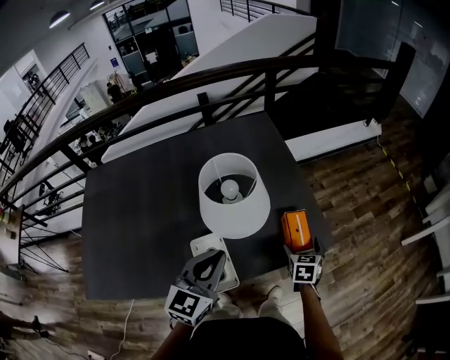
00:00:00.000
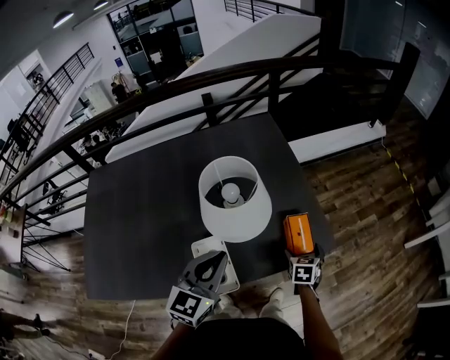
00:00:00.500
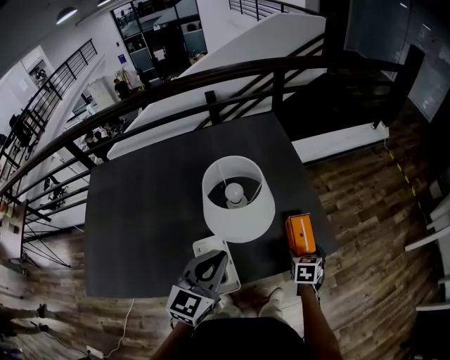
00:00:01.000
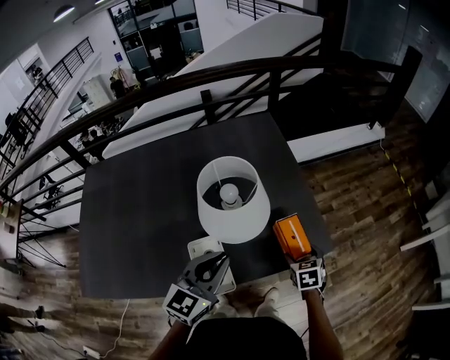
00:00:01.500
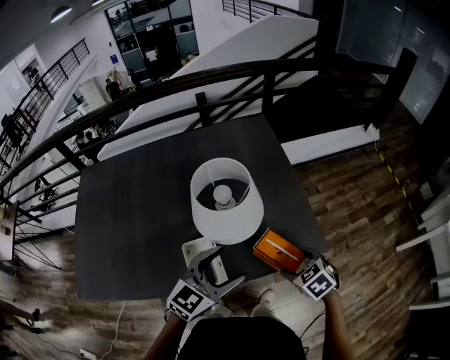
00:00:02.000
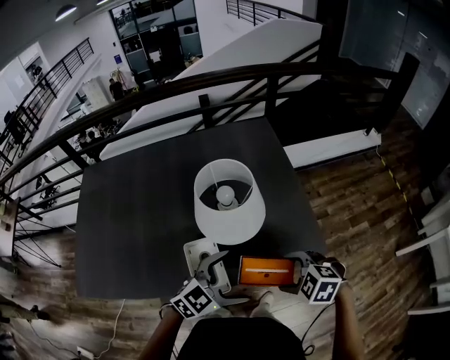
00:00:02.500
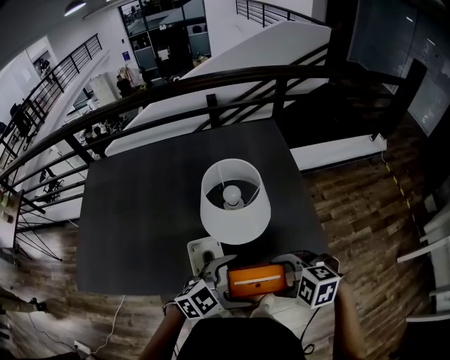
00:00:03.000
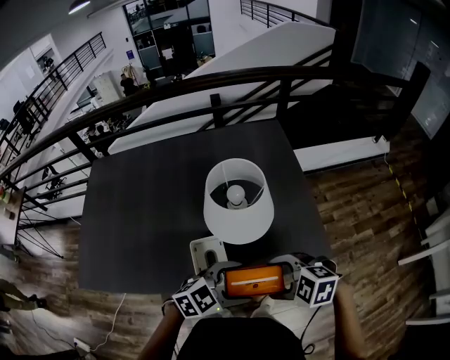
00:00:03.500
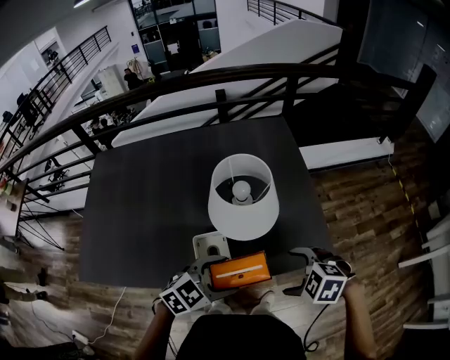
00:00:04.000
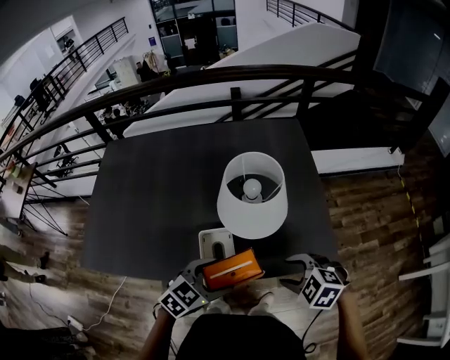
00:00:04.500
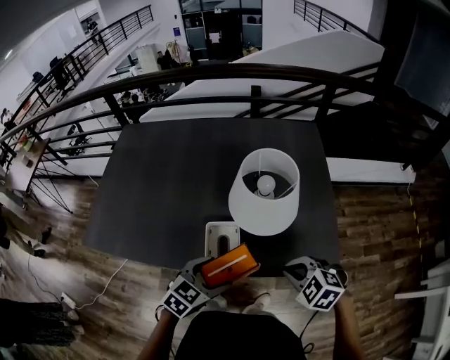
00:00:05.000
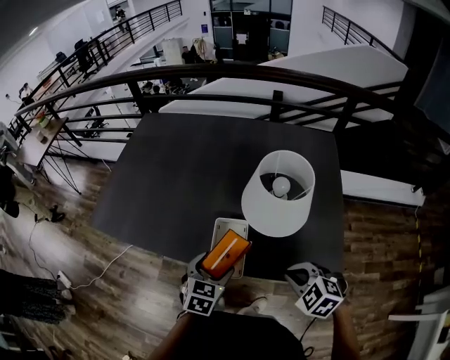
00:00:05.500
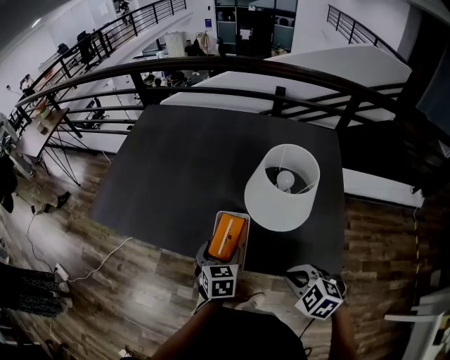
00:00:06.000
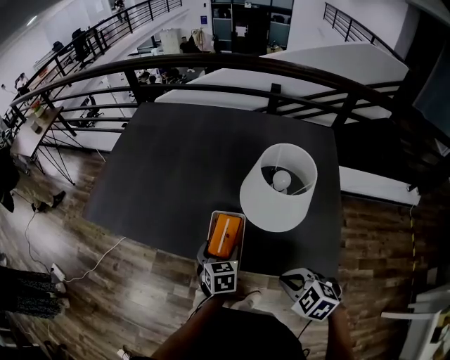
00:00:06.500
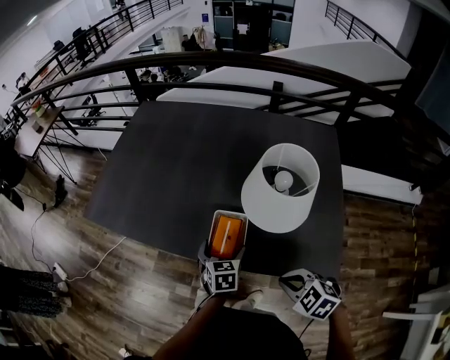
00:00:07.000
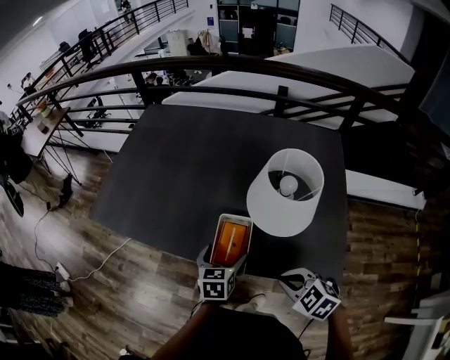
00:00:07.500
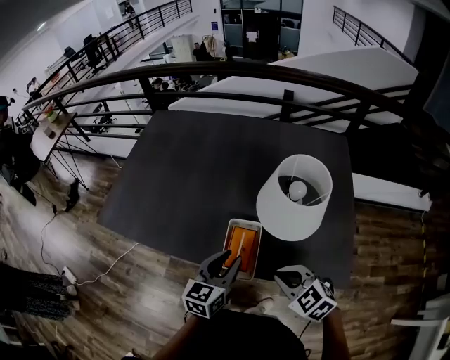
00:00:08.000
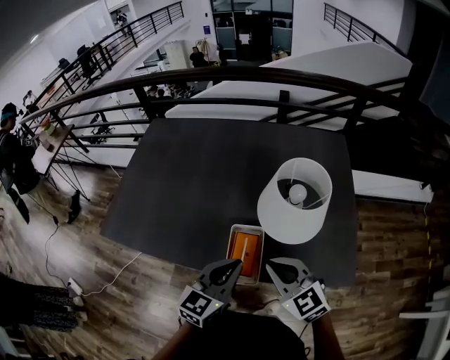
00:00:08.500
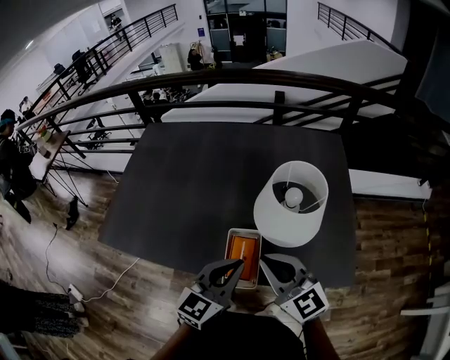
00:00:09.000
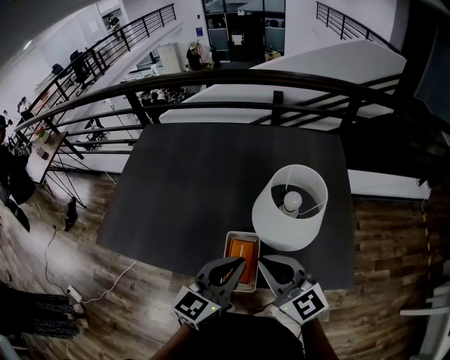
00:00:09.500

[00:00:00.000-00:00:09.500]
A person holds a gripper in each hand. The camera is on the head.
00:00:00.000 to 00:00:02.000: The left gripper shifts roughly 5 cm to the right, and opens up, while the right gripper is displaced backward by about 5 cm, and changes its angle by about 50 degrees.
00:00:02.000 to 00:00:04.000: The left gripper moves about 5 cm, rotates roughly 20 degrees, and opens, then closes again. Meanwhile the right gripper changes place by some 10 cm, and changes its angle by approximately 40 degrees.
00:00:04.000 to 00:00:05.500: The left gripper shifts by approximately 10 cm, and swivels about 60 degrees; the right gripper closes its fingers.
00:00:05.500 to 00:00:07.500: The left gripper swivels about 20 degrees.
00:00:07.500 to 00:00:09.500: The right gripper travels upward, forward and to the left by some 20 cm, and tilts its fingers approximately 50 degrees upward; the left gripper heads upward, covering about 20 cm, tips its fingers upward by about 30 degrees, and closes its fingers.

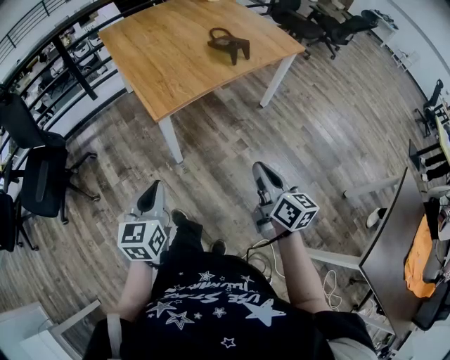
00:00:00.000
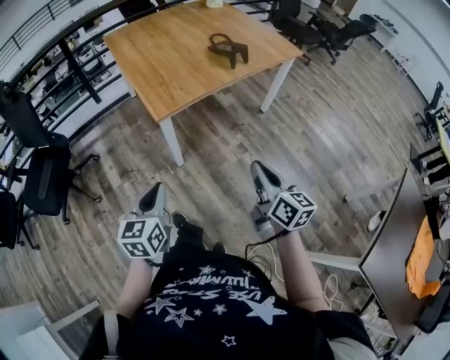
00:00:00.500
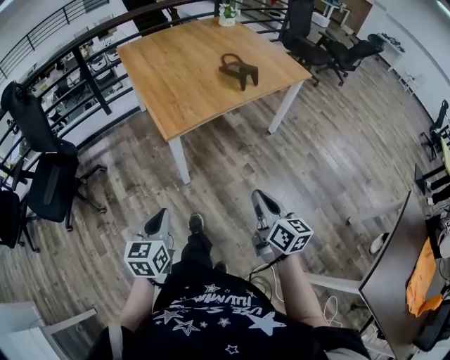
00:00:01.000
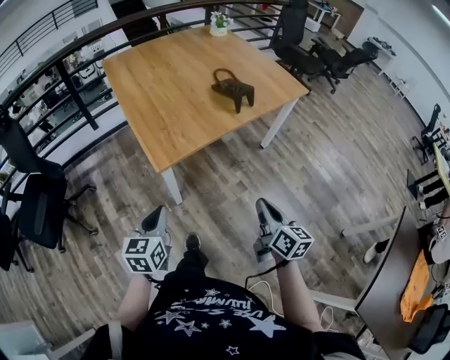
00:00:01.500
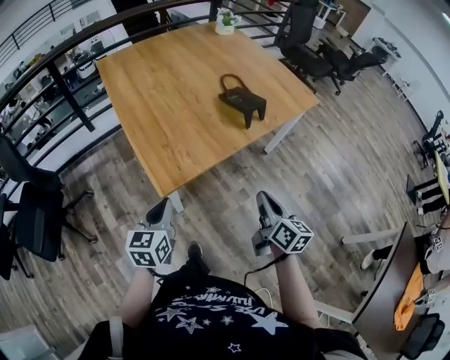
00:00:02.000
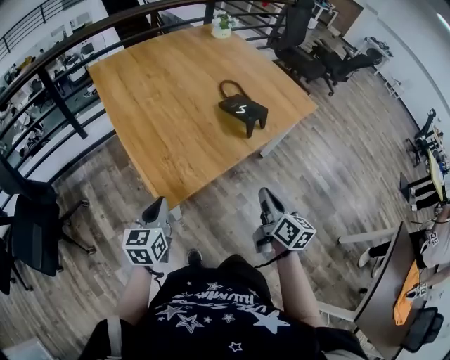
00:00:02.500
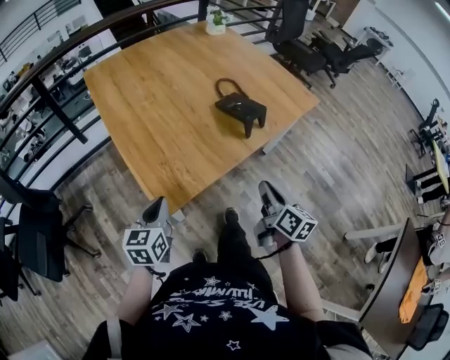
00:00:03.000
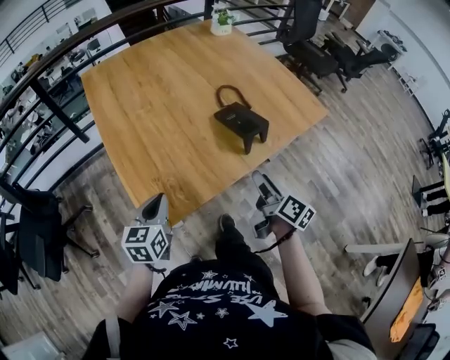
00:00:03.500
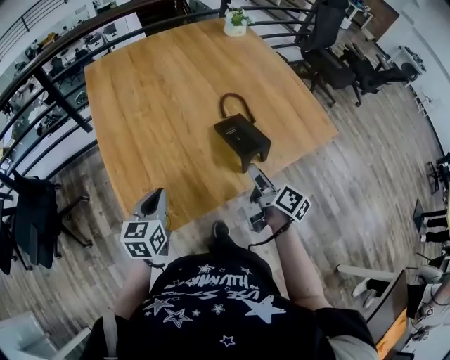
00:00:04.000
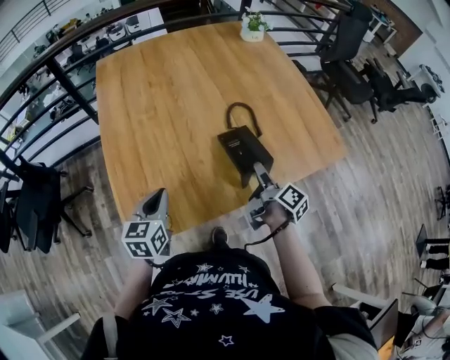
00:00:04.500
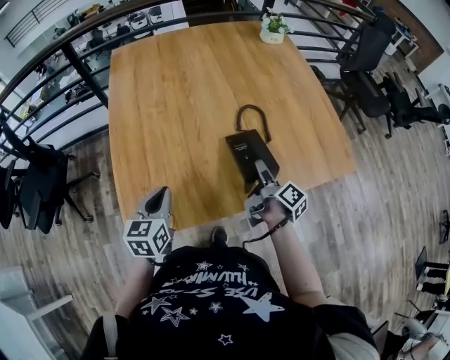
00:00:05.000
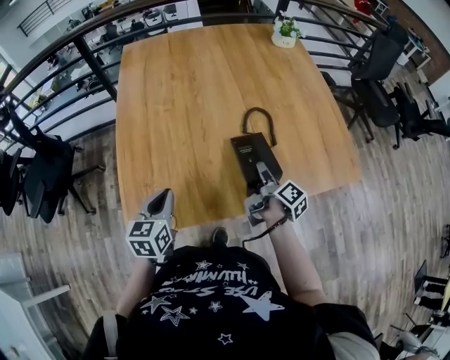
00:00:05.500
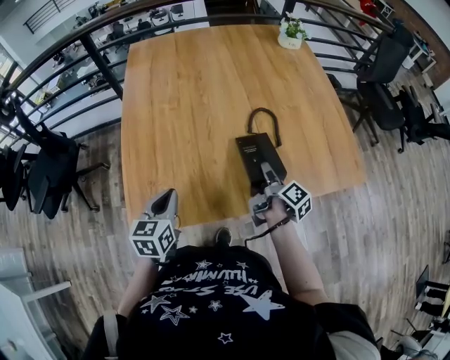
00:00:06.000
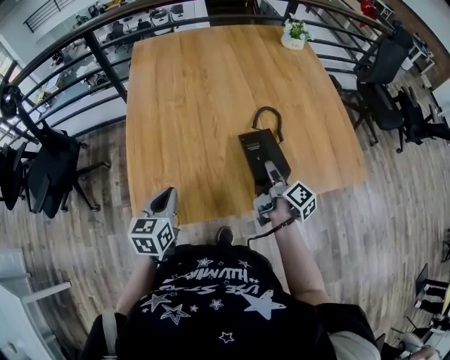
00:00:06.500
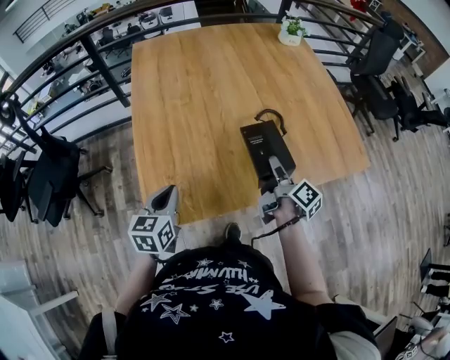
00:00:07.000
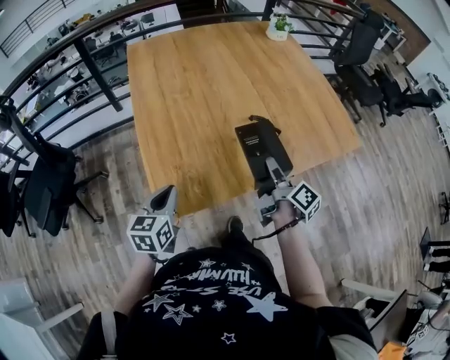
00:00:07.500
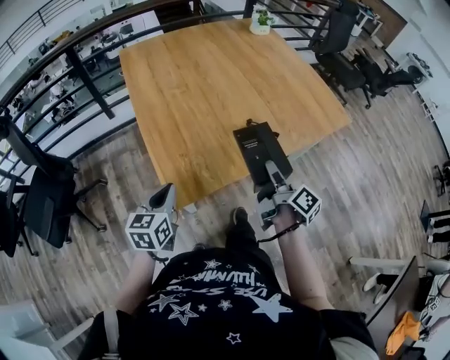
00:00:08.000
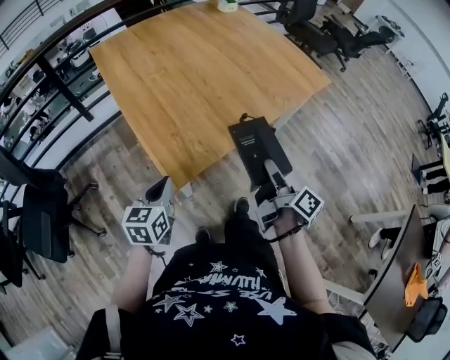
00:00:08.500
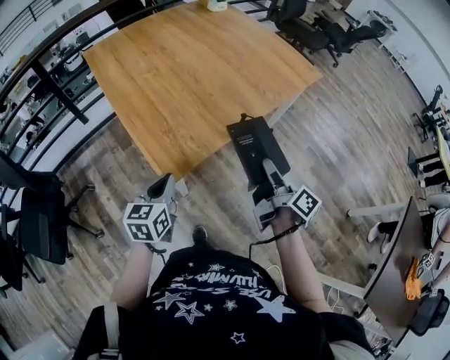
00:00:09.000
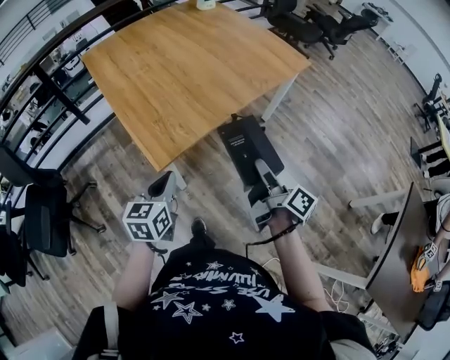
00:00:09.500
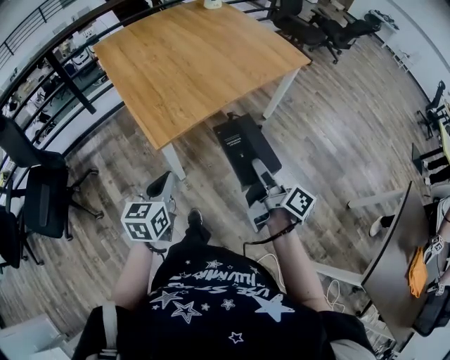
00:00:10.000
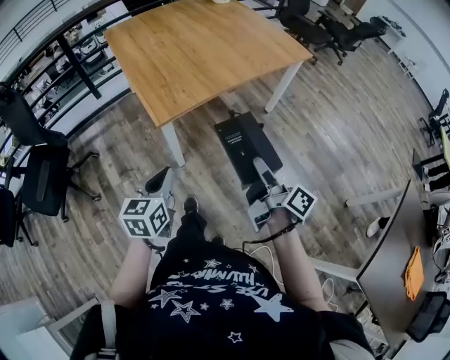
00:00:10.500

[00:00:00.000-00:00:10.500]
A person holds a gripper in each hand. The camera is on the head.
00:00:00.000 to 00:00:02.000: Both grippers move forward, roughly 25 cm.
00:00:02.000 to 00:00:04.000: The grippers both shift forward by some 25 cm. The right gripper rotates roughly 30 degrees, and opens its fingers.
00:00:04.000 to 00:00:06.500: The right gripper is displaced forward and downward by roughly 10 cm.
00:00:06.500 to 00:00:08.500: The right gripper moves backward, approximately 30 cm, and turns by some 20 degrees; the left gripper goes about 20 cm backward and to the left, and changes its angle by roughly 30 degrees.
00:00:08.500 to 00:00:10.500: The left gripper heads backward and to the right, covering some 25 cm. Meanwhile the right gripper is displaced backward by about 25 cm.

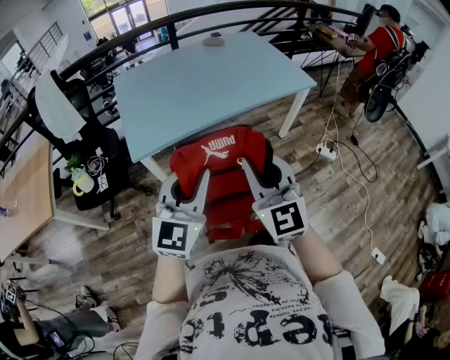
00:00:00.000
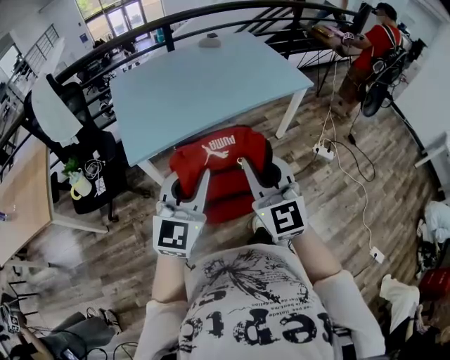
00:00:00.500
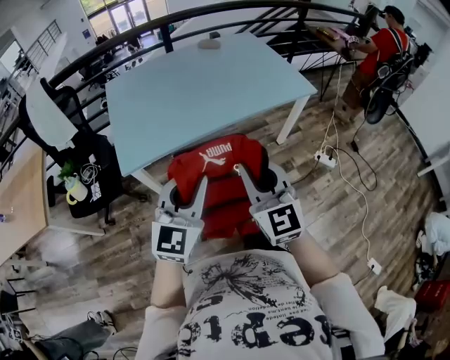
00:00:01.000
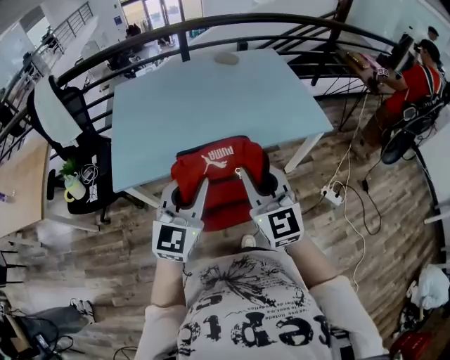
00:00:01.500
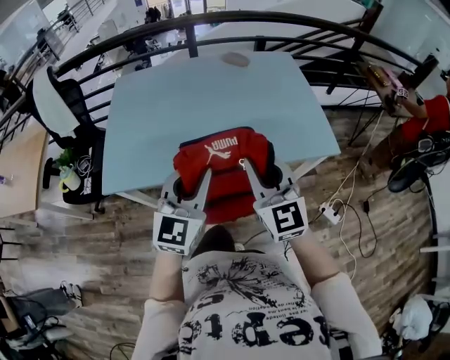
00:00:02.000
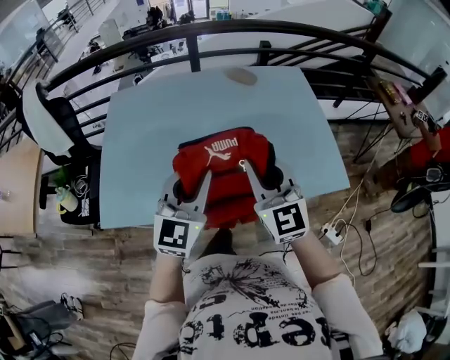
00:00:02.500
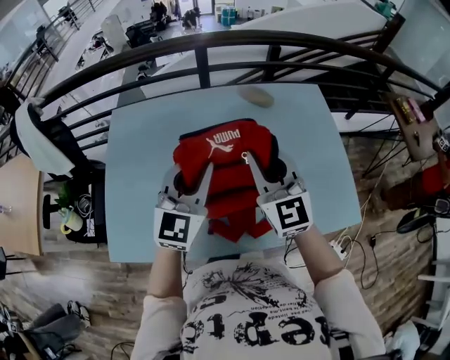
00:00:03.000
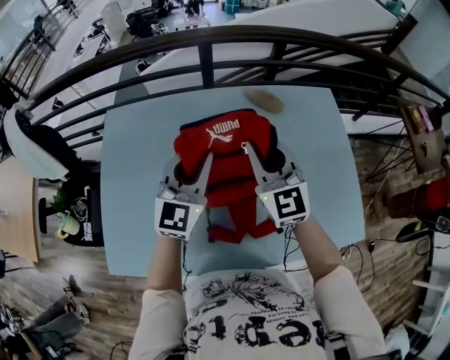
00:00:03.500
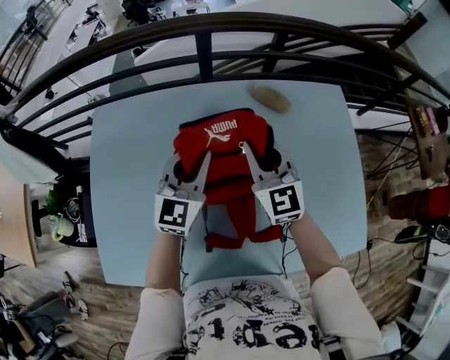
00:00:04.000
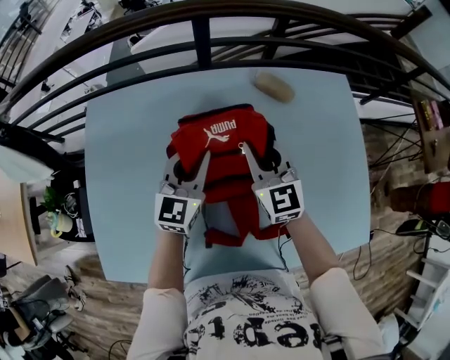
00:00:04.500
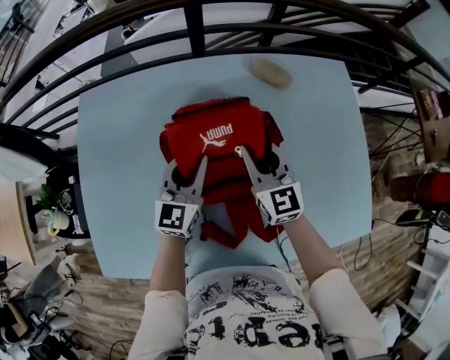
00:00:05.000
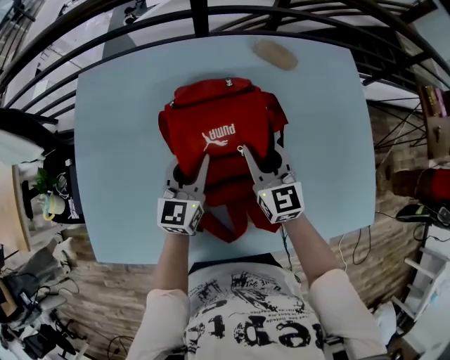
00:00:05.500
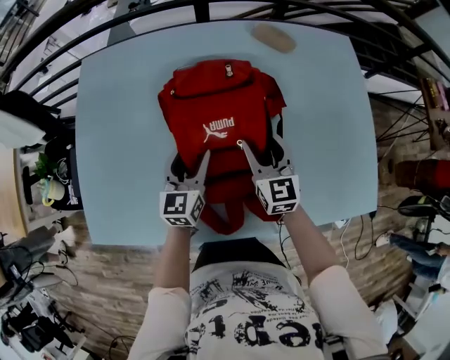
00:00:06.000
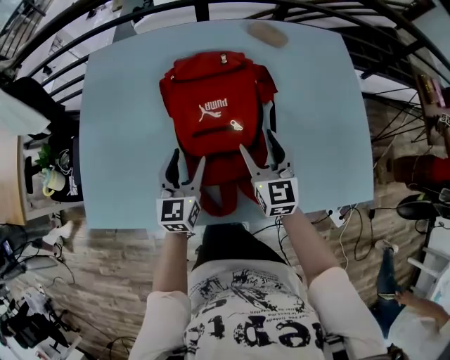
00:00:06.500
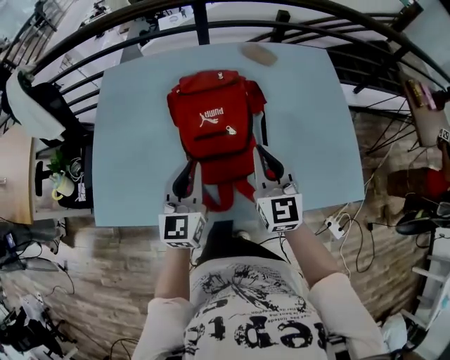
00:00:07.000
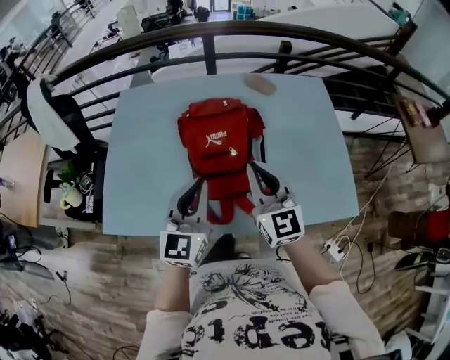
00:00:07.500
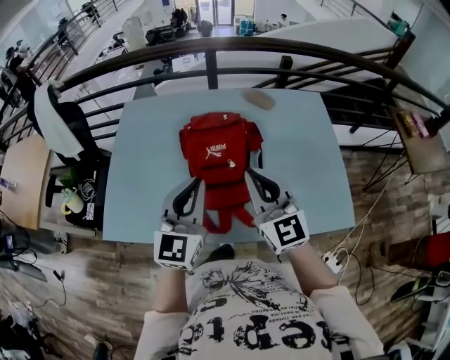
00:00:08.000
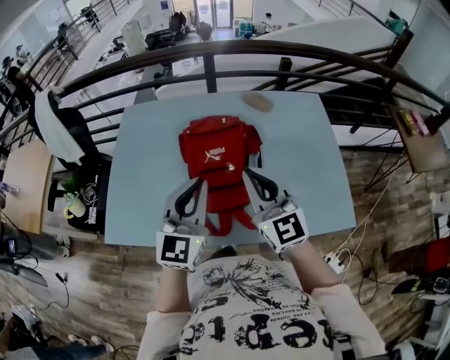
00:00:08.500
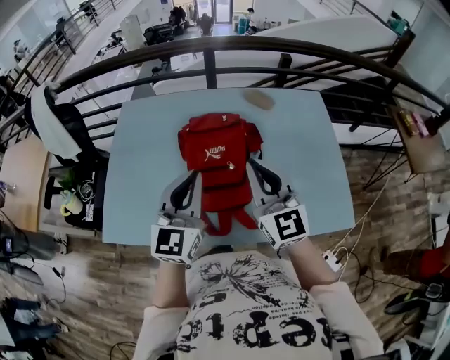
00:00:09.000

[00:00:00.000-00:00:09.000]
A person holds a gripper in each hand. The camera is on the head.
00:00:00.000 to 00:00:02.000: The two grippers travel together, forward and to the right, about 40 cm.
00:00:02.000 to 00:00:04.500: Both grippers are carried forward, about 60 cm.
00:00:04.500 to 00:00:07.000: The grippers both shift backward by roughly 25 cm. The right gripper opens and closes again; the left gripper opens, then closes once more.
00:00:07.000 to 00:00:09.000: Both grippers move upward, roughly 15 cm.
